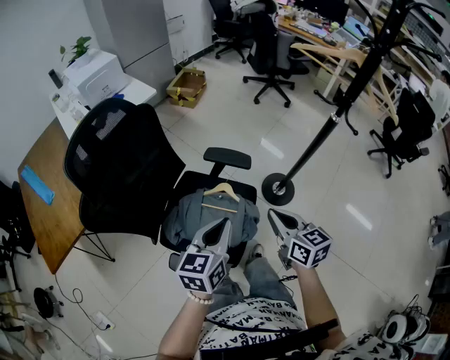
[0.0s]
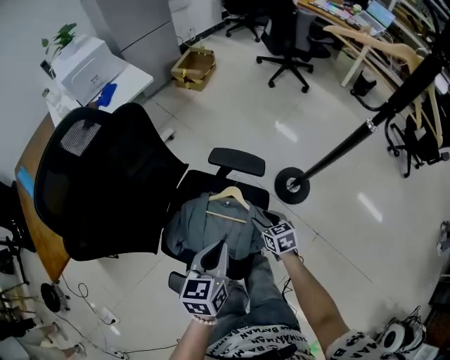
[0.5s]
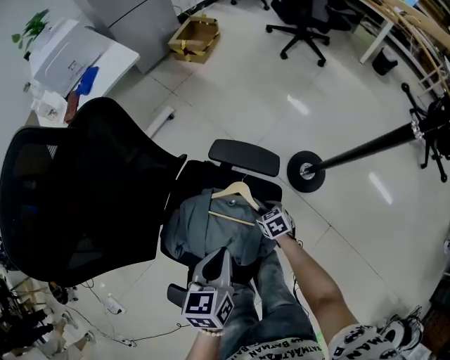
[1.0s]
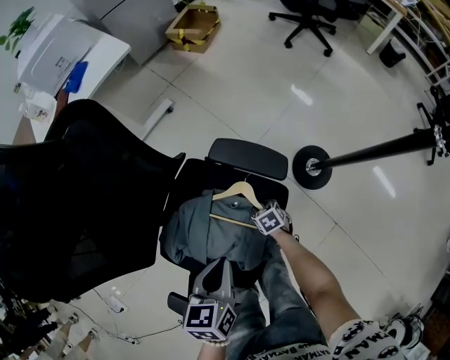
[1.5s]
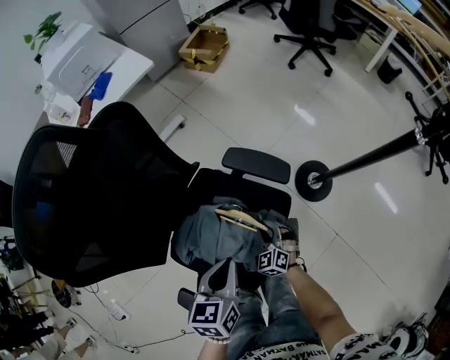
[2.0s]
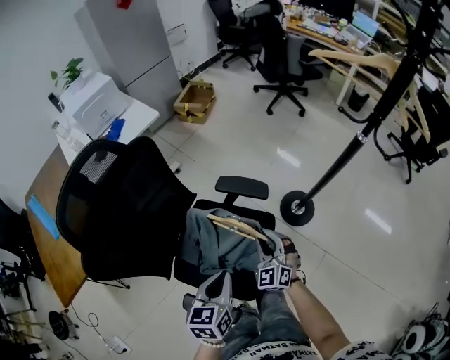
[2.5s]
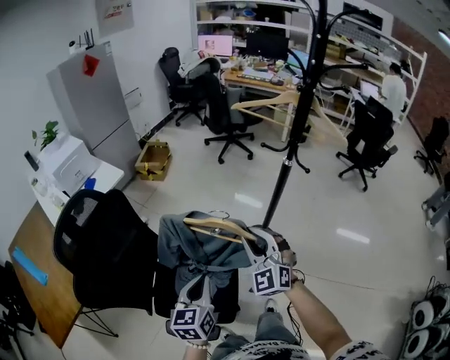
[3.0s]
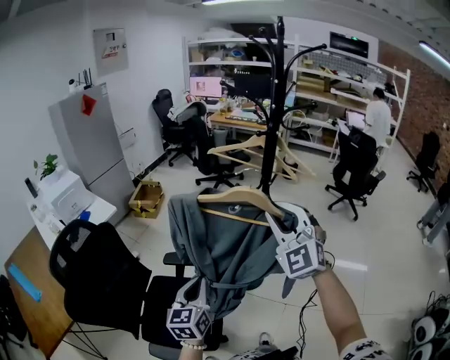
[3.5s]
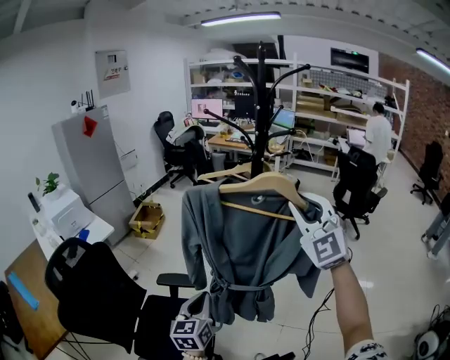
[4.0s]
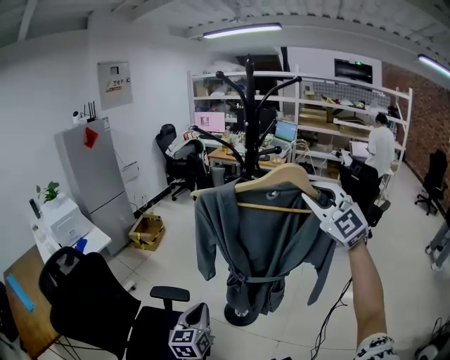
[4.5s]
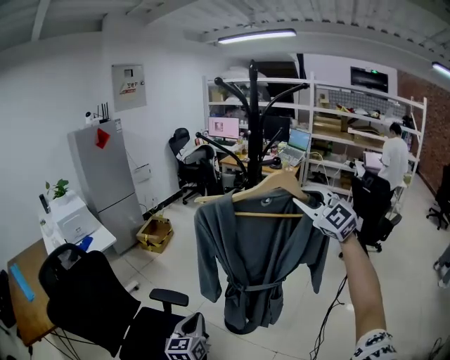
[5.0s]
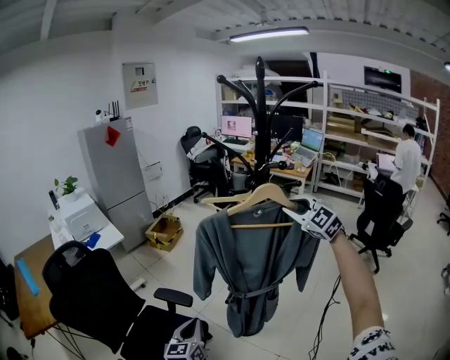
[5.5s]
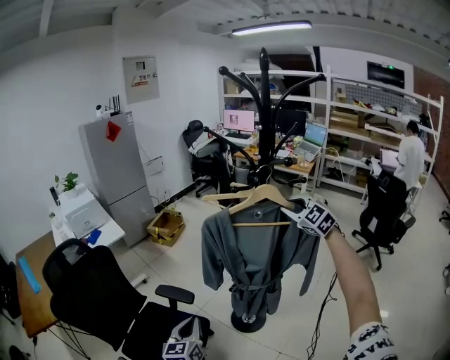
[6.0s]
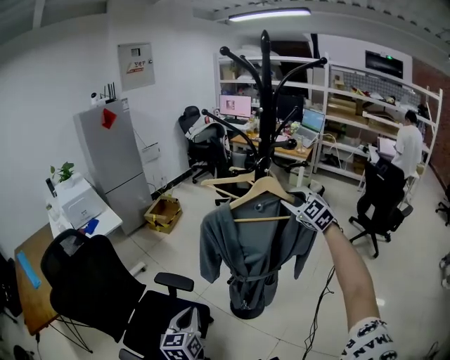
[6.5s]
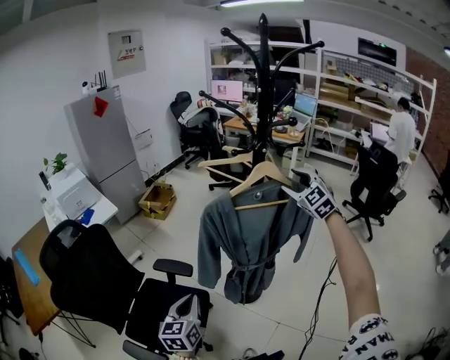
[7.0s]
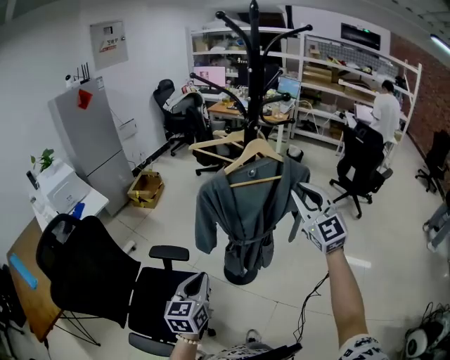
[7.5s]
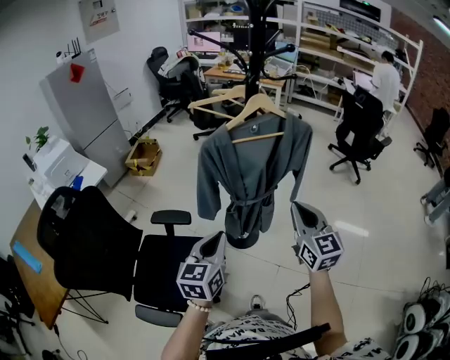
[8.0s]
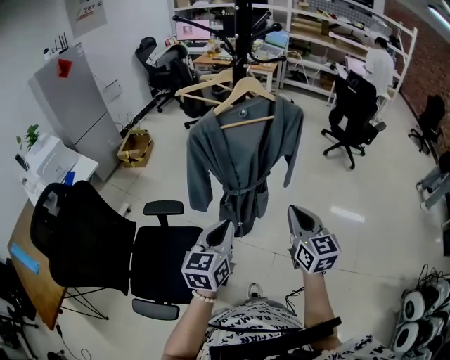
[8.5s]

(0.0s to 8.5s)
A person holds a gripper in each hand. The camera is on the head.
0.0s - 2.0s: The left gripper travels downward and forward by roughly 20 cm, and swivels some 20 degrees. Meanwhile the right gripper travels downward and forward by roughly 40 cm, twists roughly 50 degrees counterclockwise, seen from behind, and opens, then closes again.
2.0s - 4.0s: The right gripper shifts approximately 80 cm upward and to the right, and tilts its fingers roughly 50 degrees upward. Meanwhile the left gripper shifts approximately 35 cm upward and to the right, and changes its angle by about 40 degrees.
4.0s - 6.5s: The right gripper travels forward, downward and to the right by some 30 cm, and rotates about 30 degrees.
6.5s - 8.5s: The left gripper shifts by approximately 10 cm, and rotates some 30 degrees. Meanwhile the right gripper ends up roughly 40 cm from where it was, twists approximately 50 degrees clockwise, seen from behind, and closes up.

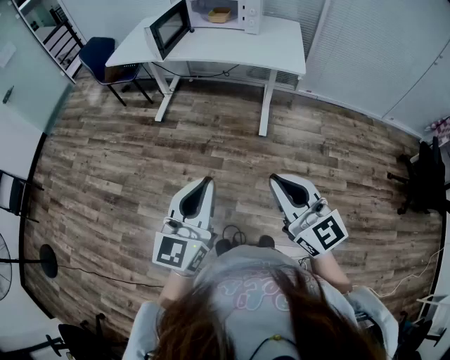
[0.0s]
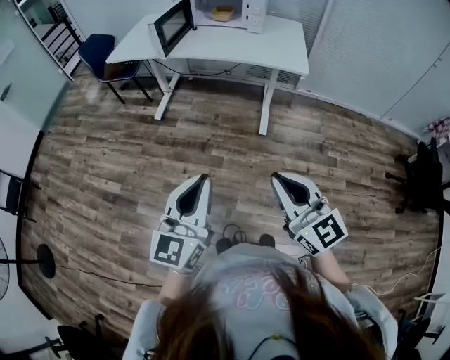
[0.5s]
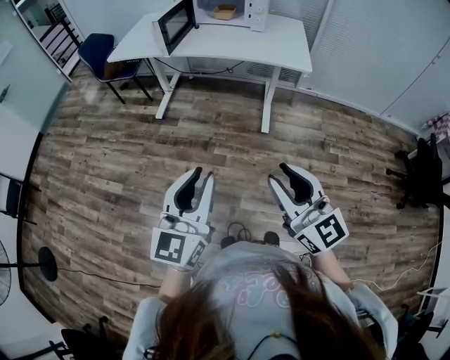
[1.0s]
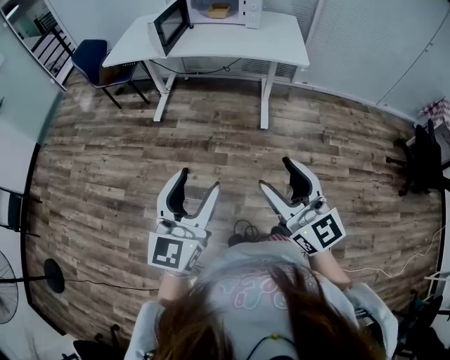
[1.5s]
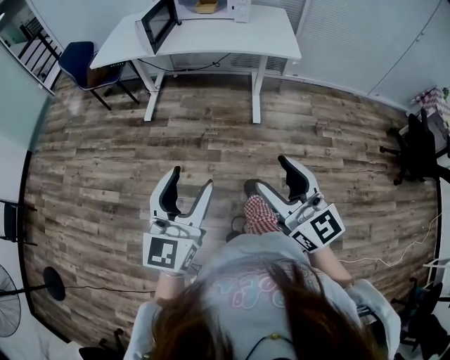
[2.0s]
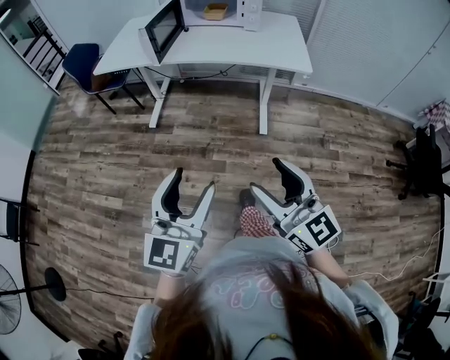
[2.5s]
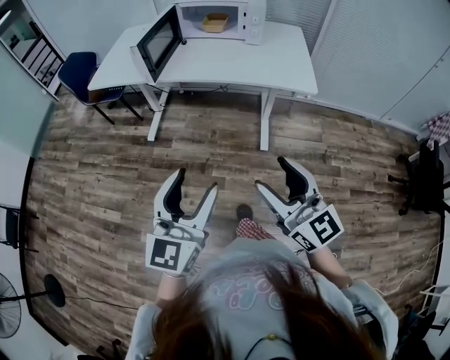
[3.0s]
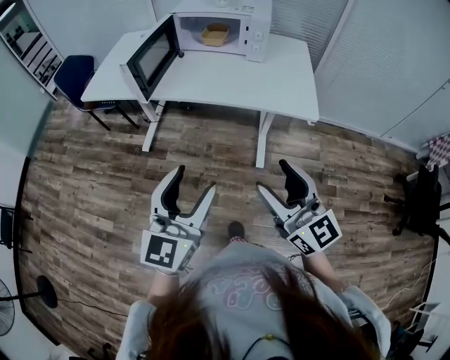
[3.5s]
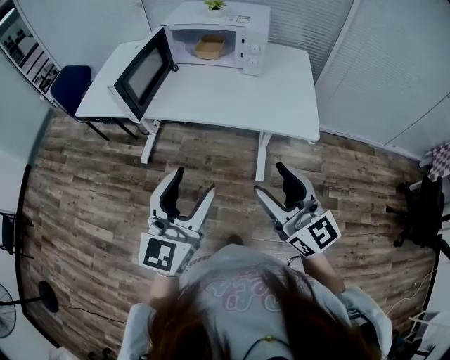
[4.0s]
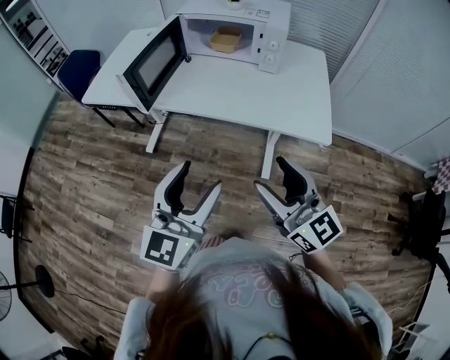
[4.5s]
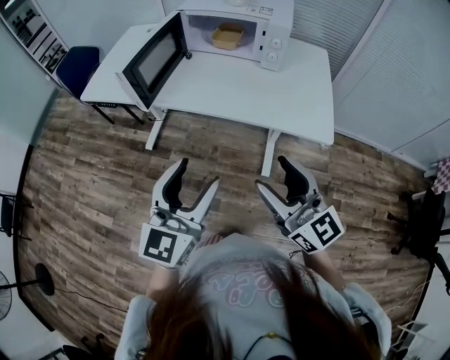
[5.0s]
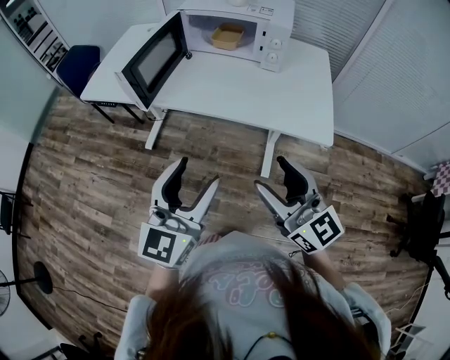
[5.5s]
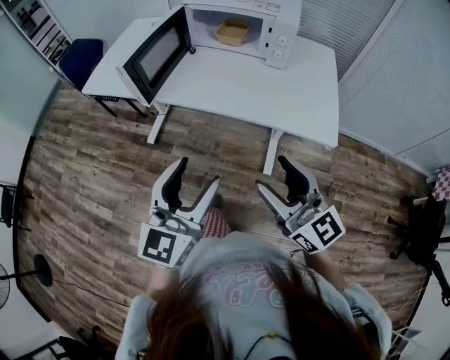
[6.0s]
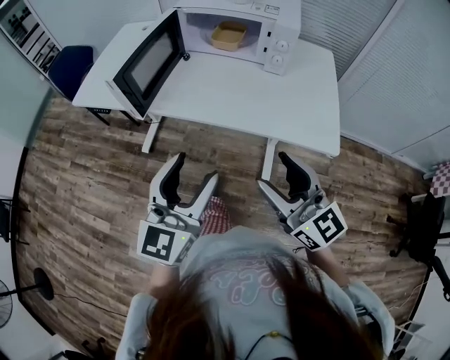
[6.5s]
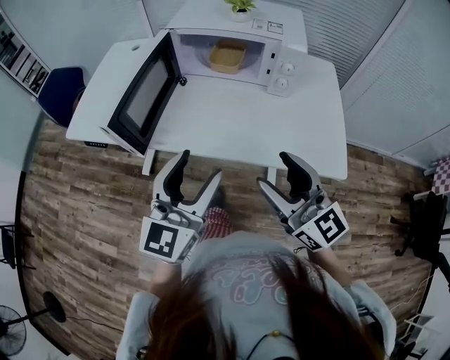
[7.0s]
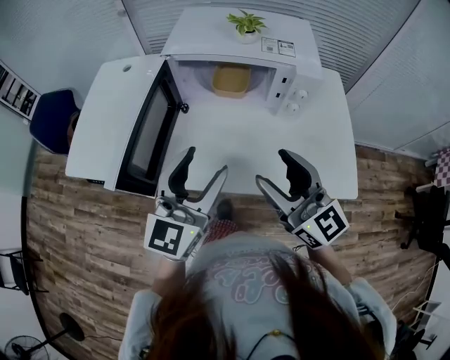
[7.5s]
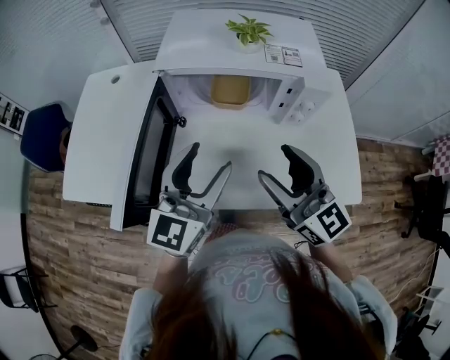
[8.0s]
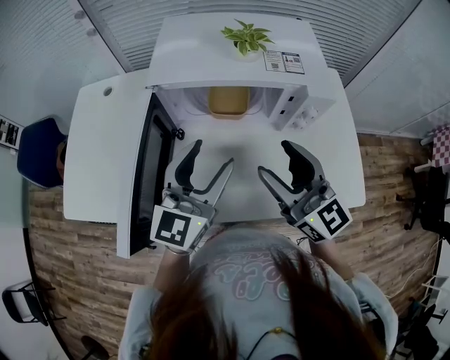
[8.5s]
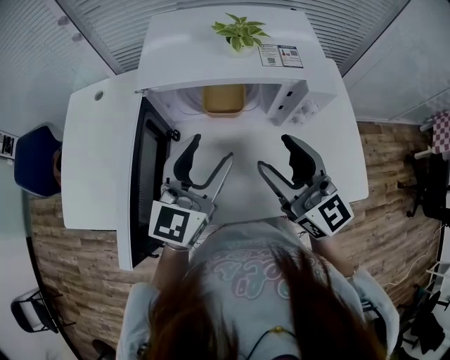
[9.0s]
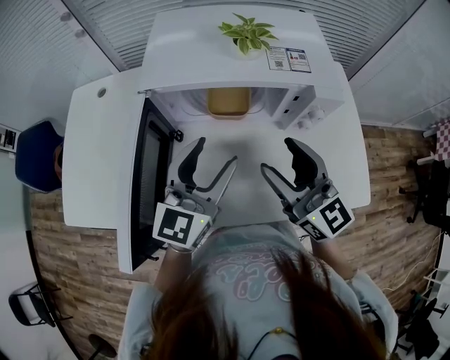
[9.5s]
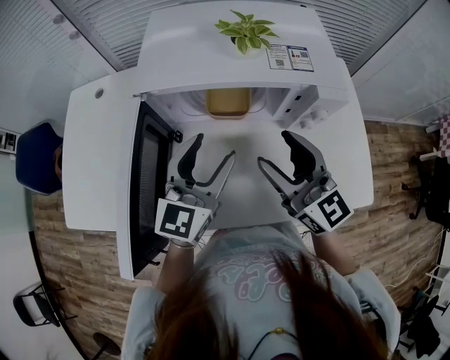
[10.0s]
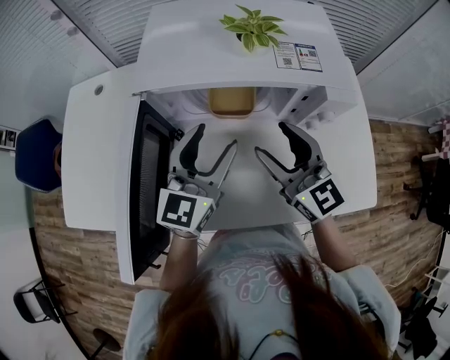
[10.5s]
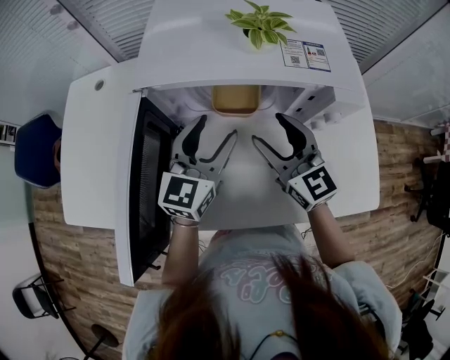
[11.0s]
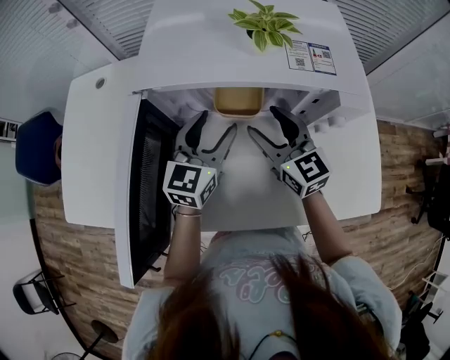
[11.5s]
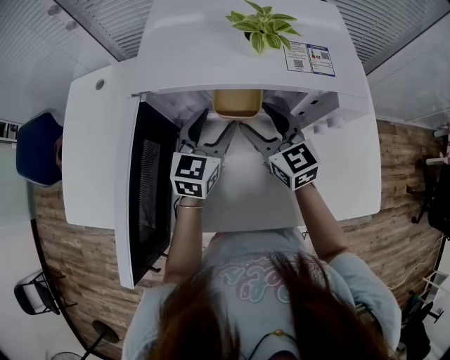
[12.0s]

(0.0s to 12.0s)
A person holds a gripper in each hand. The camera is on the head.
0.0s - 2.0s: Both grippers move to the left, roughly 10 cm. The left gripper opens its fingers. The right gripper opens.
2.0s - 4.0s: The grippers both shift forward by about 40 cm.
4.0s - 6.0s: The right gripper changes place by roughly 5 cm.
6.0s - 8.0s: Both grippers travel together forward, some 35 cm.
8.0s - 10.0s: The two grippers go roughly 10 cm forward.
10.0s - 12.0s: The right gripper is displaced forward and downward by roughly 15 cm; the left gripper travels downward and forward by some 15 cm.

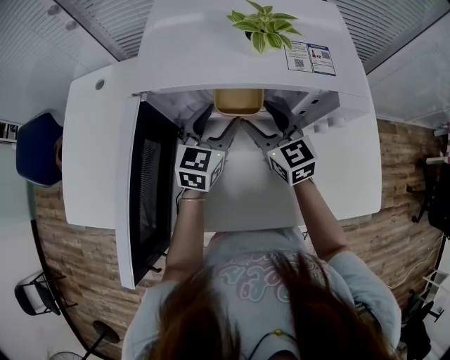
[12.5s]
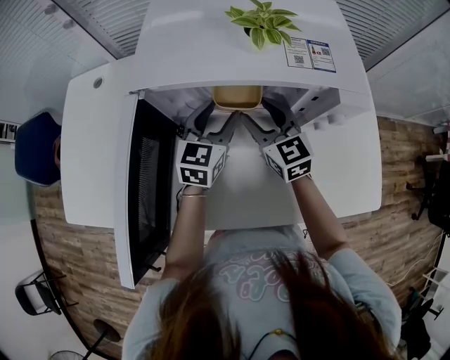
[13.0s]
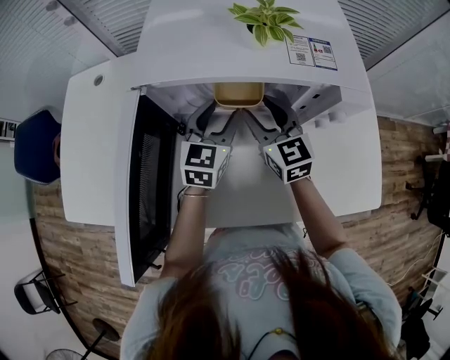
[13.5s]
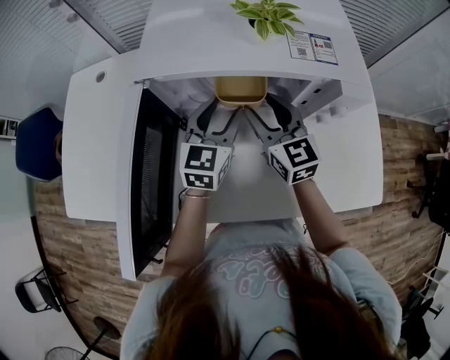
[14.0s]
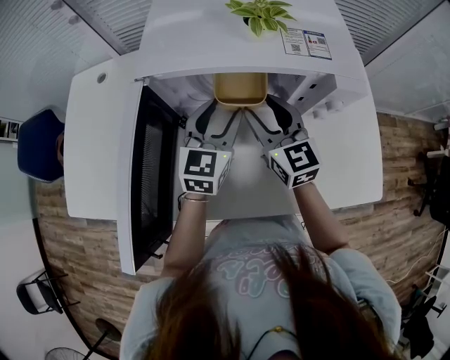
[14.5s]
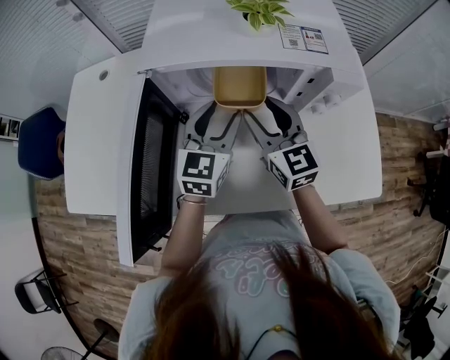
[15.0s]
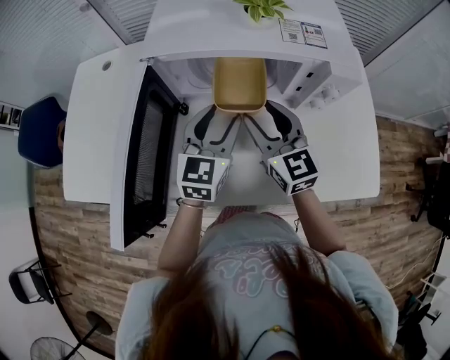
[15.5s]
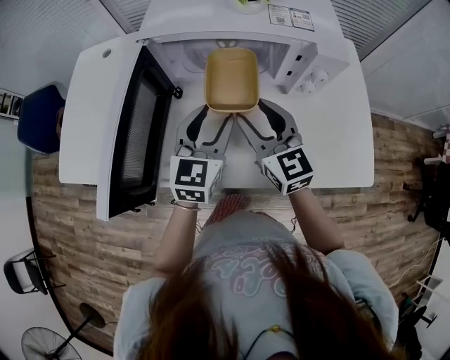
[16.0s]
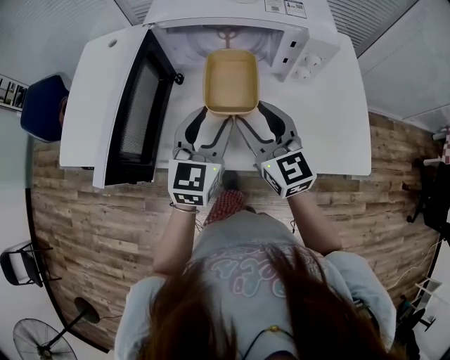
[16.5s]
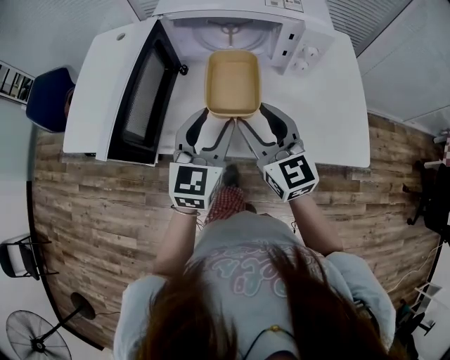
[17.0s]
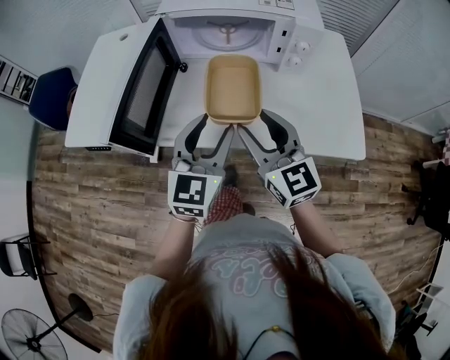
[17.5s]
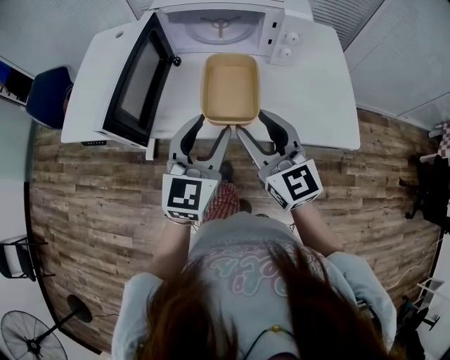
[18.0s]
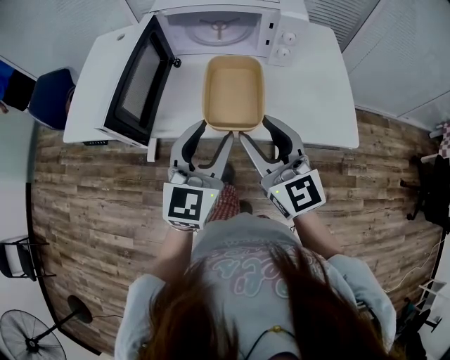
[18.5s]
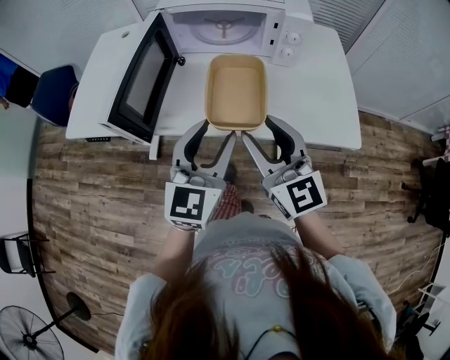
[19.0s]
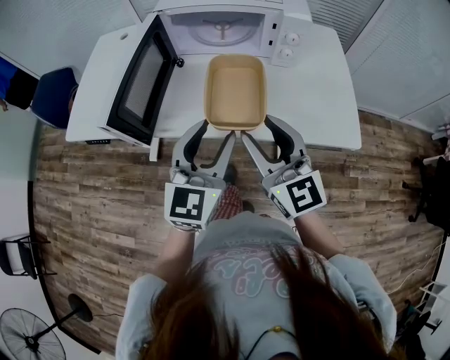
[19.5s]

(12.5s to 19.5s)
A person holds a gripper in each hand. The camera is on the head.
12.5s - 14.5s: The left gripper ends up about 5 cm from where it was. Meanwhile the right gripper moves about 5 cm.
14.5s - 16.0s: Both grippers travel together backward, about 10 cm.
16.0s - 17.5s: The grippers both shift backward by roughly 15 cm.
17.5s - 19.5s: The two grippers go some 5 cm backward.
